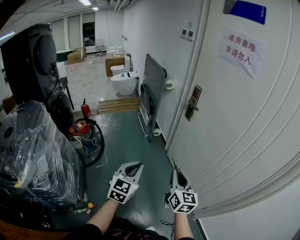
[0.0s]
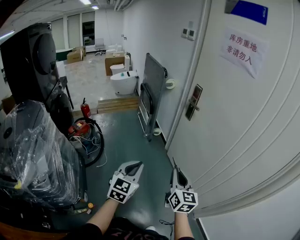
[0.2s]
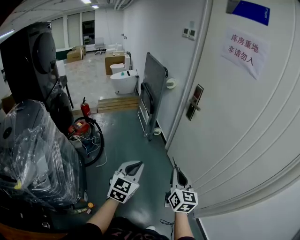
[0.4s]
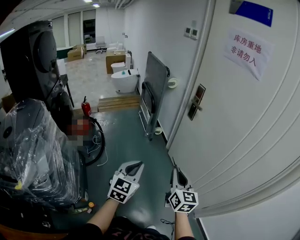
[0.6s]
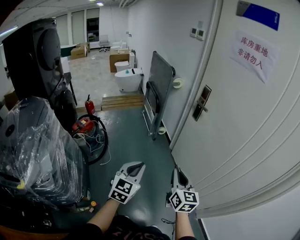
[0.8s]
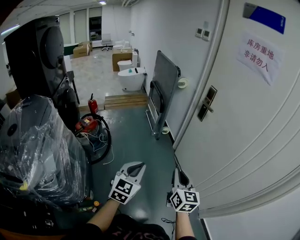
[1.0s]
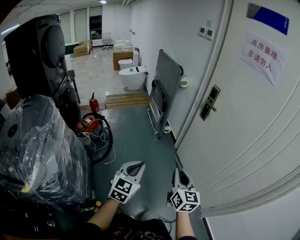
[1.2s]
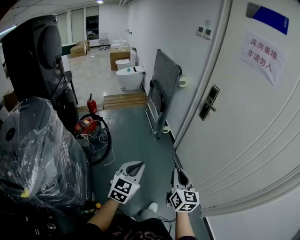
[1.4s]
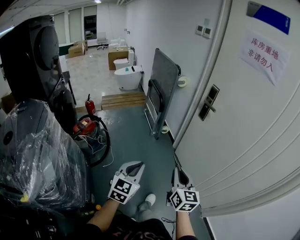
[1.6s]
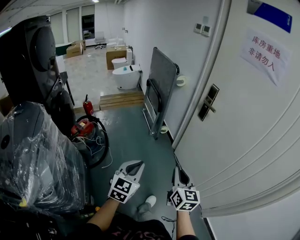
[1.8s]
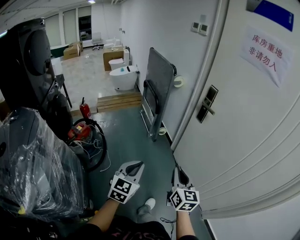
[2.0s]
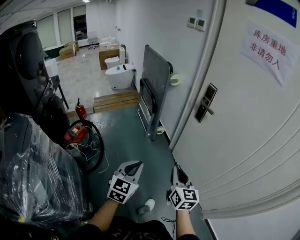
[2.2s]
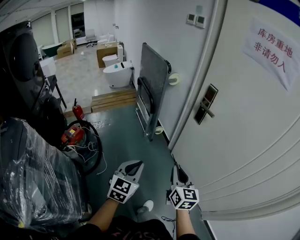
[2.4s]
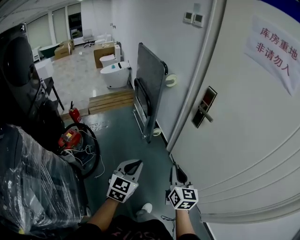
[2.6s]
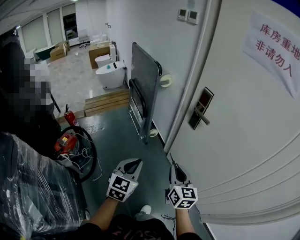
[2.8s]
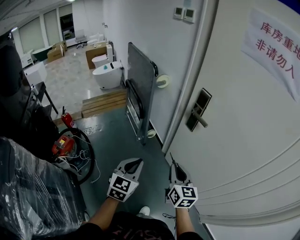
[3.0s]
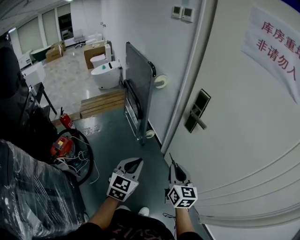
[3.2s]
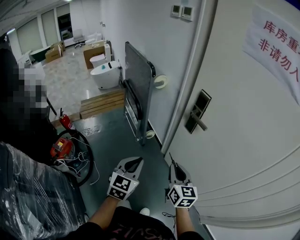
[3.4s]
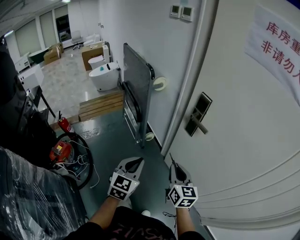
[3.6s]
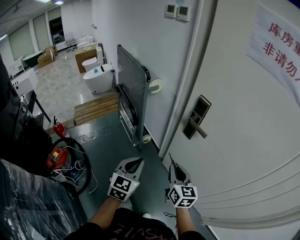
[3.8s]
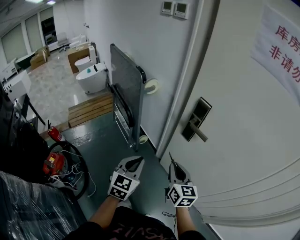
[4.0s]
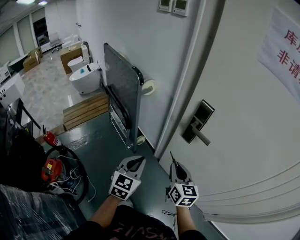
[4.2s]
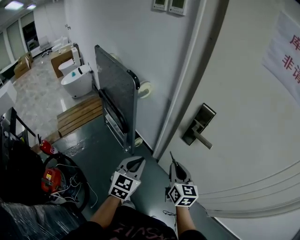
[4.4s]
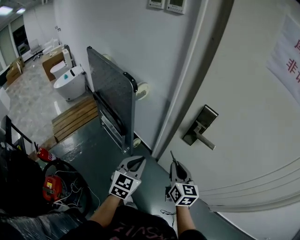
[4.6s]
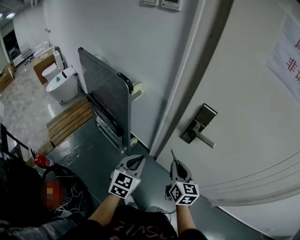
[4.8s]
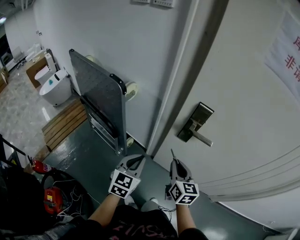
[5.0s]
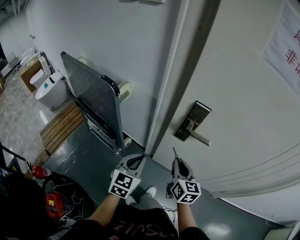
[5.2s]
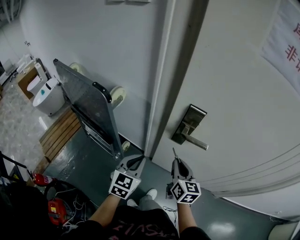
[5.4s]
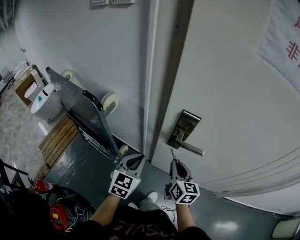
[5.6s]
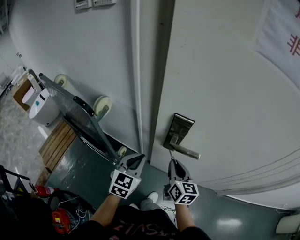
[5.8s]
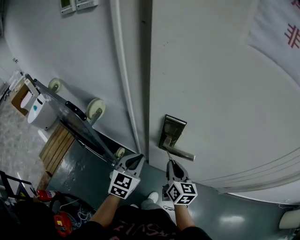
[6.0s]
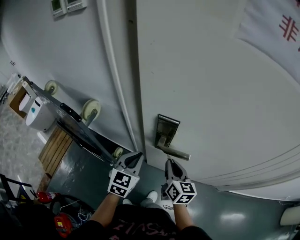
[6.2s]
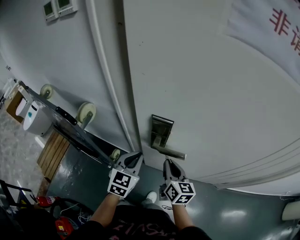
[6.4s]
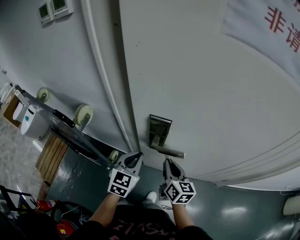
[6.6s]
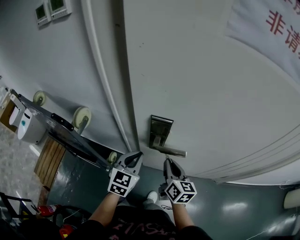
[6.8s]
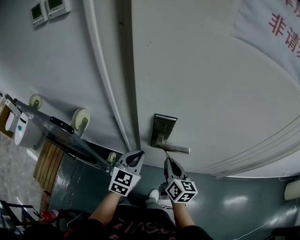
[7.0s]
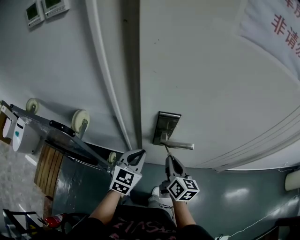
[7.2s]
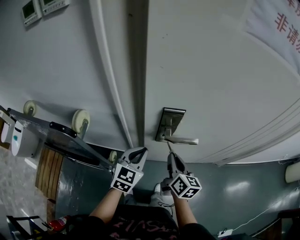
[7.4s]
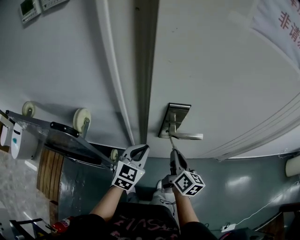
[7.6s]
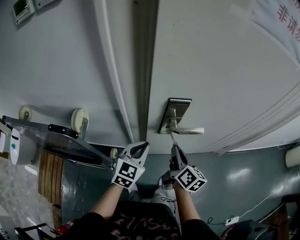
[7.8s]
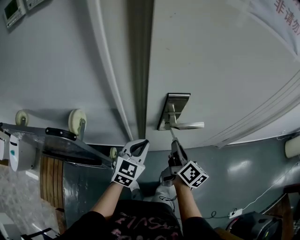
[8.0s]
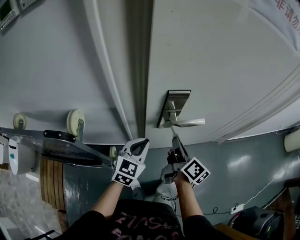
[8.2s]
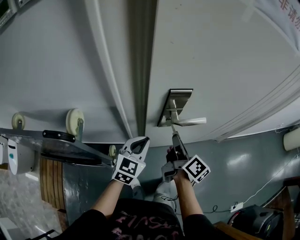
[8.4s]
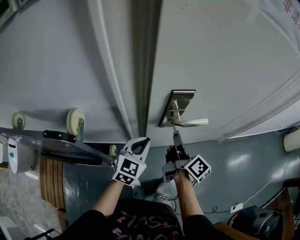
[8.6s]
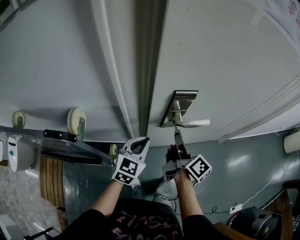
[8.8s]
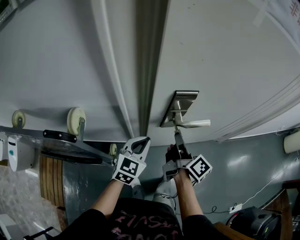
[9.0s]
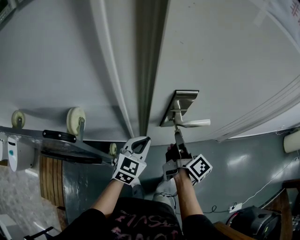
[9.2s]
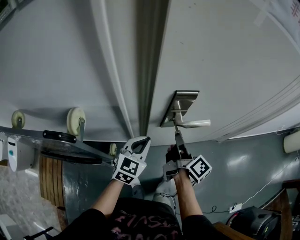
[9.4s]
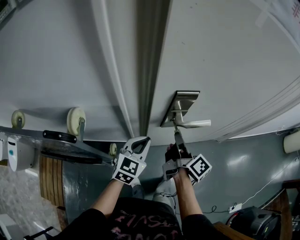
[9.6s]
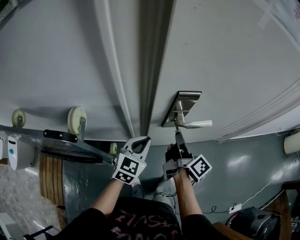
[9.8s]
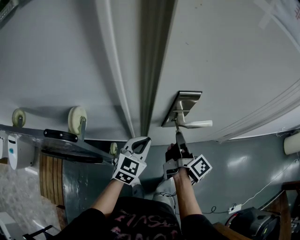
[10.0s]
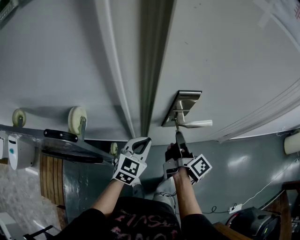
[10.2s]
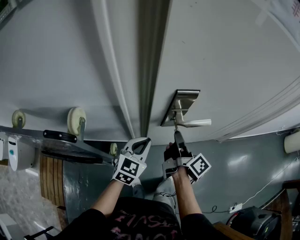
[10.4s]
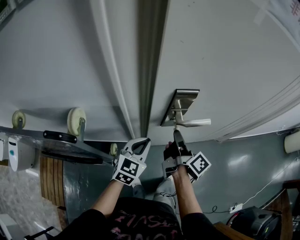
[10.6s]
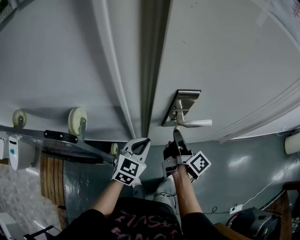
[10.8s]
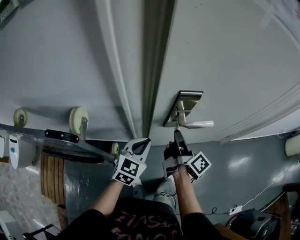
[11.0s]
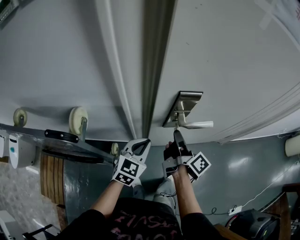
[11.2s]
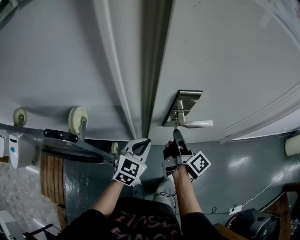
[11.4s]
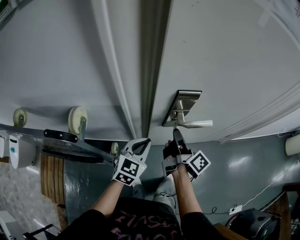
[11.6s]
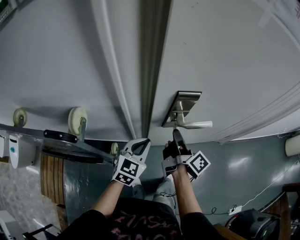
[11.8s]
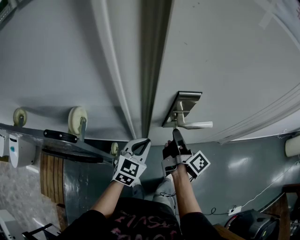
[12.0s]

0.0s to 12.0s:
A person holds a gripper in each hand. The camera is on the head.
0.0s to 1.6s: Both grippers travel together to the left, about 10 cm.
1.6s to 3.0s: The two grippers go about 25 cm forward.
3.0s to 4.4s: The grippers both shift forward by some 20 cm.
4.4s to 6.0s: The left gripper goes about 20 cm forward, and turns by approximately 20 degrees, while the right gripper heads forward and to the right, covering some 15 cm, and swivels approximately 30 degrees.
6.0s to 7.6s: The right gripper changes its angle by approximately 30 degrees. The left gripper changes its angle by roughly 20 degrees.
7.6s to 9.0s: The right gripper changes its angle by roughly 30 degrees.
9.0s to 12.0s: The grippers make only small movements.

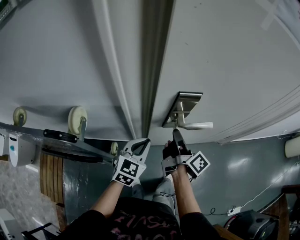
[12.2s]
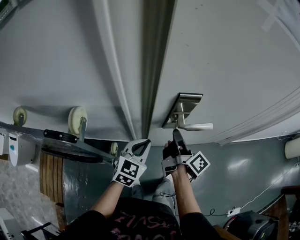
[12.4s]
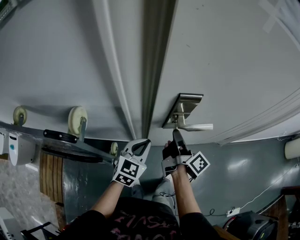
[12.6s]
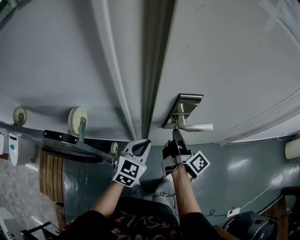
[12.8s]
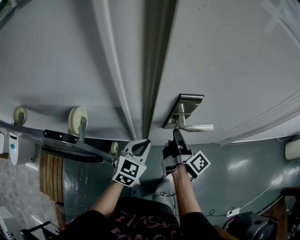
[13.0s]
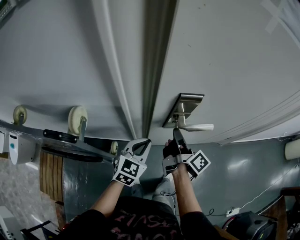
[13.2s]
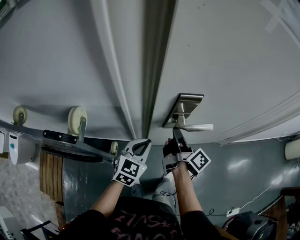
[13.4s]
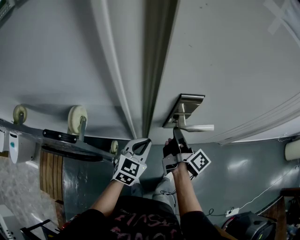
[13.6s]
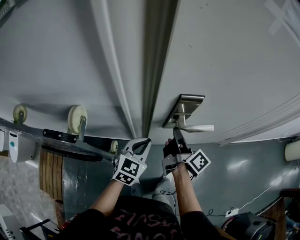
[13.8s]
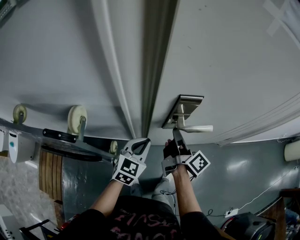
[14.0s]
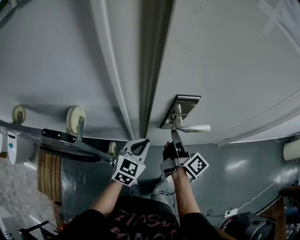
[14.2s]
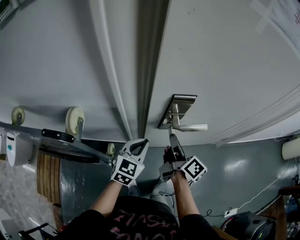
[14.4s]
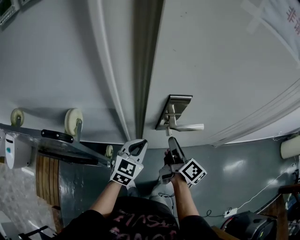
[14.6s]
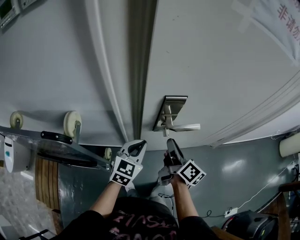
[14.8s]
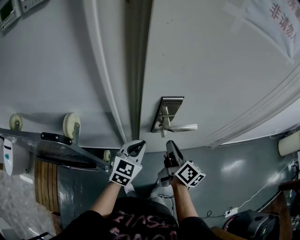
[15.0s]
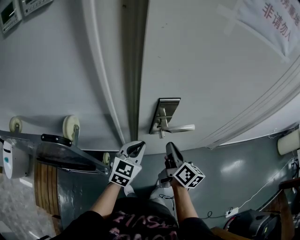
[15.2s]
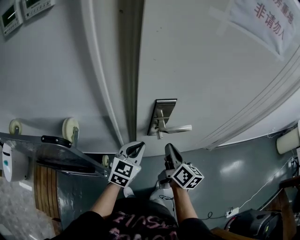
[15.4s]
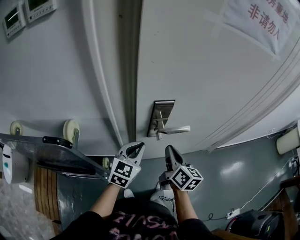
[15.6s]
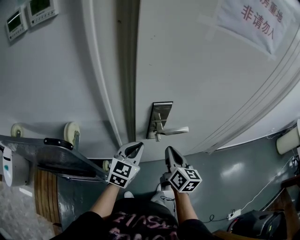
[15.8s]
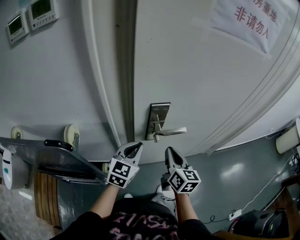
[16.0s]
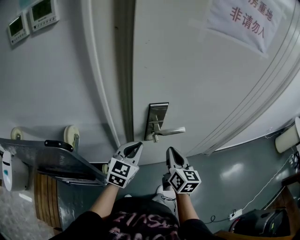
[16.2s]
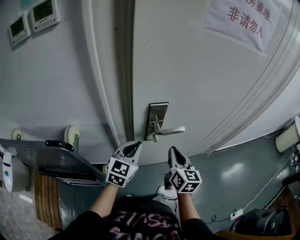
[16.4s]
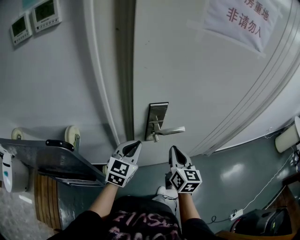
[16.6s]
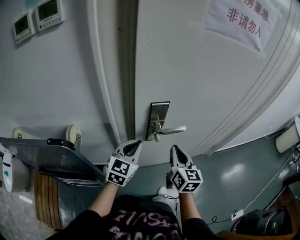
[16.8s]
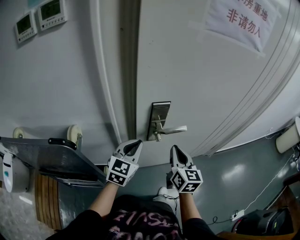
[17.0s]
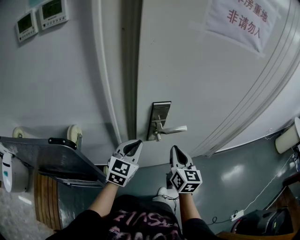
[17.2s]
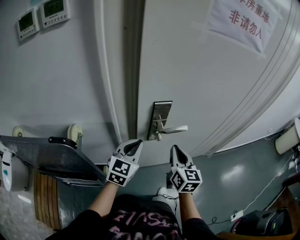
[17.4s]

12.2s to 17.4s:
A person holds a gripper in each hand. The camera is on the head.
12.2s to 14.0s: There are only small adjustments of the grippers.
14.0s to 15.6s: The right gripper travels backward by some 5 cm, and changes its angle by approximately 40 degrees. Meanwhile the left gripper moves upward, some 5 cm.
15.6s to 17.4s: The right gripper rotates approximately 20 degrees.

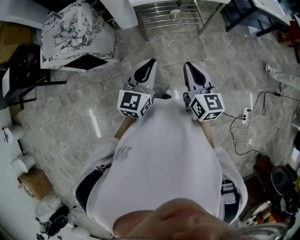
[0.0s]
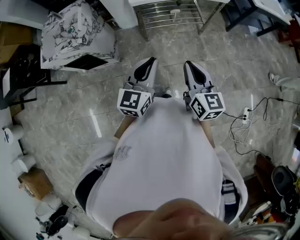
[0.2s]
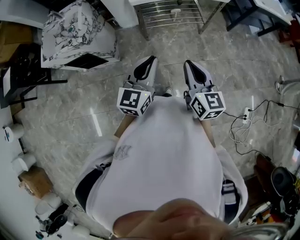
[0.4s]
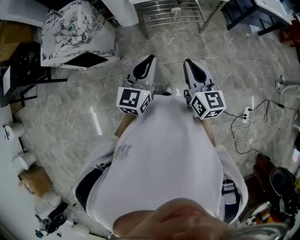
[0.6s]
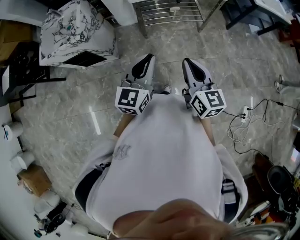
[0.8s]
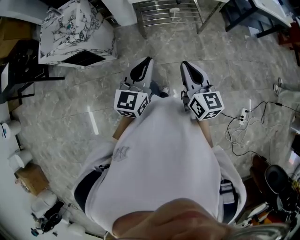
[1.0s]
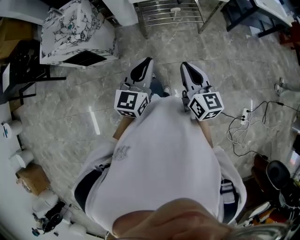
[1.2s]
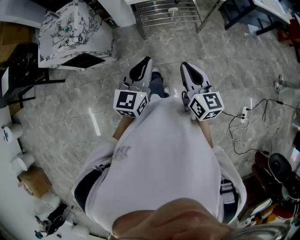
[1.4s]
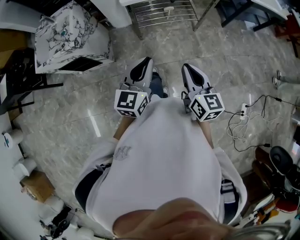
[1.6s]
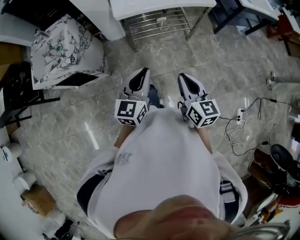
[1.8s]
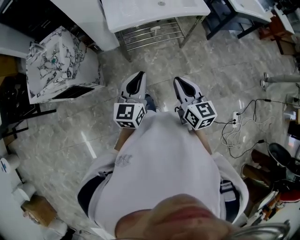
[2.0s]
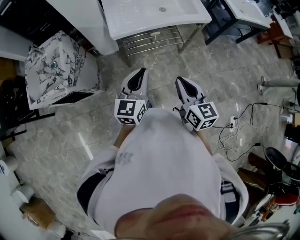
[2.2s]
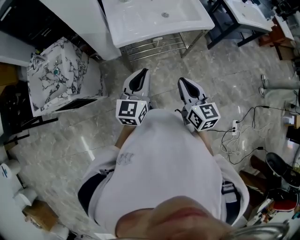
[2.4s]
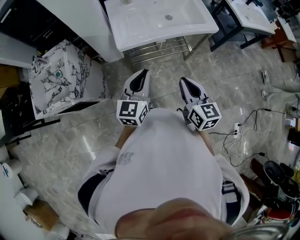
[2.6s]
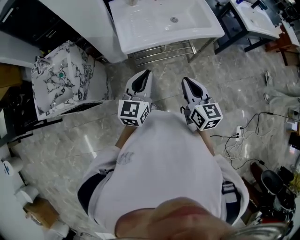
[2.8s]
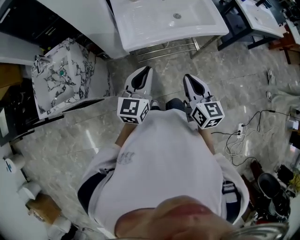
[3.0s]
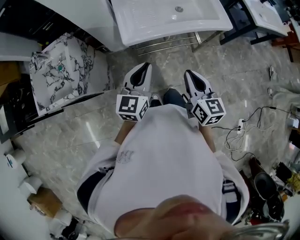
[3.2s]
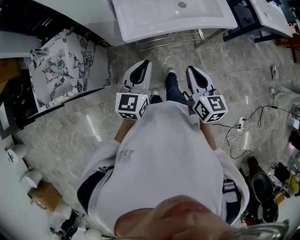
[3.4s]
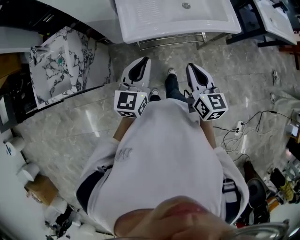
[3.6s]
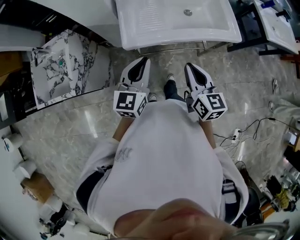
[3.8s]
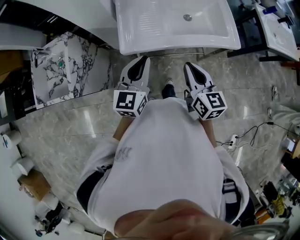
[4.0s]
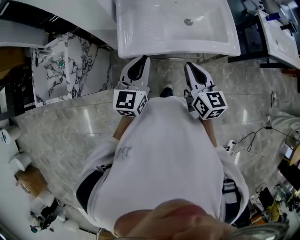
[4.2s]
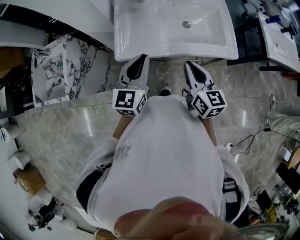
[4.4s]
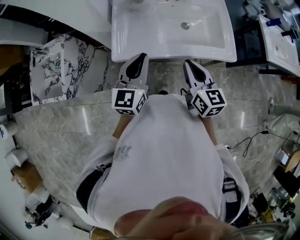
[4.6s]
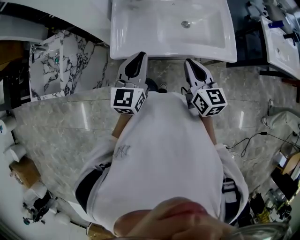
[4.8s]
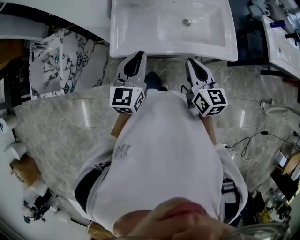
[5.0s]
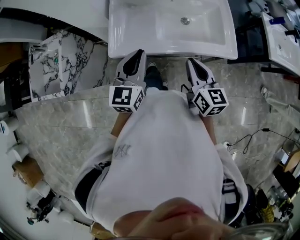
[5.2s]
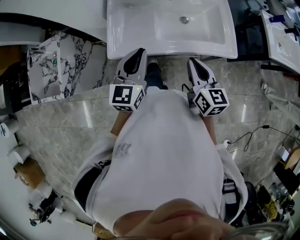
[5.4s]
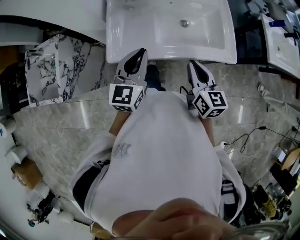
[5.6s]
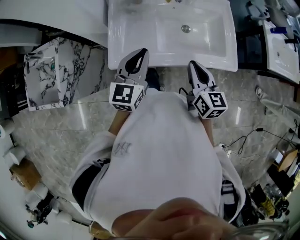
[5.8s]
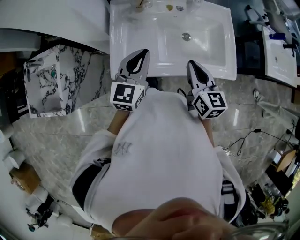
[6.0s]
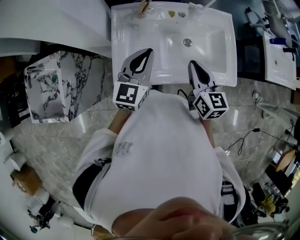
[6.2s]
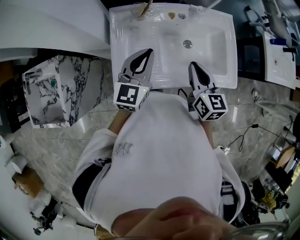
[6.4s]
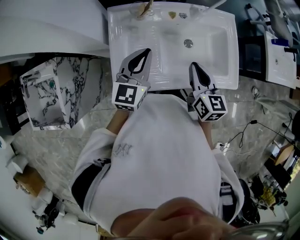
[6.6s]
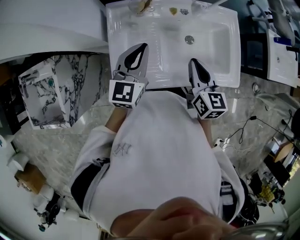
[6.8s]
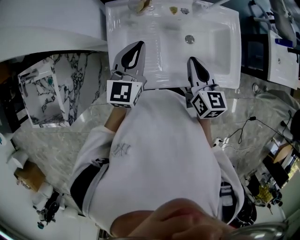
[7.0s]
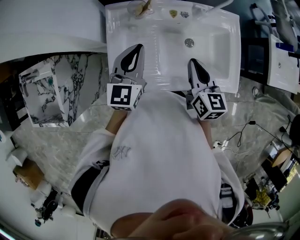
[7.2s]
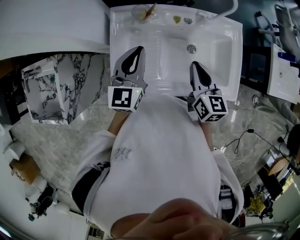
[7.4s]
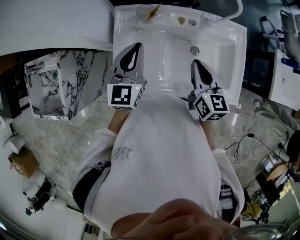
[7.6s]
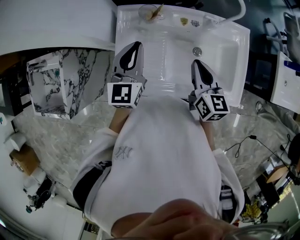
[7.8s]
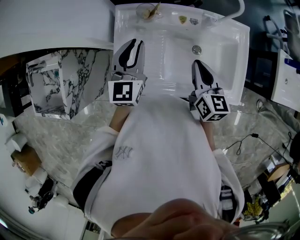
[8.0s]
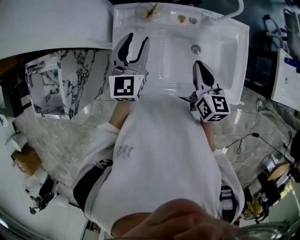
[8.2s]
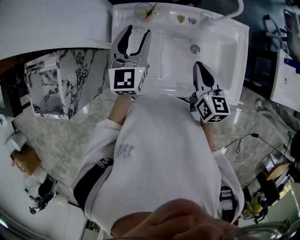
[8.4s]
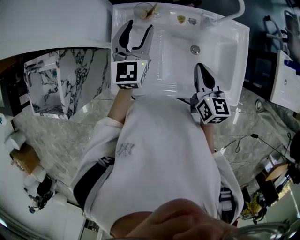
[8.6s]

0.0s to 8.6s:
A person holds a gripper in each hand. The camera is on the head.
0.0s to 1.4s: The grippers stay close to where they were, moving slightly.
1.4s to 2.8s: The grippers both shift forward by some 25 cm.
2.8s to 4.4s: Both grippers travel together forward, some 20 cm.
4.4s to 5.8s: Both grippers travel together forward, some 10 cm.
5.8s to 7.2s: The grippers both shift forward by some 15 cm.
7.2s to 8.6s: The left gripper is displaced forward by some 10 cm, and opens up.
